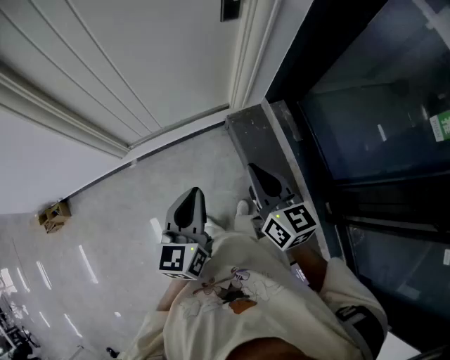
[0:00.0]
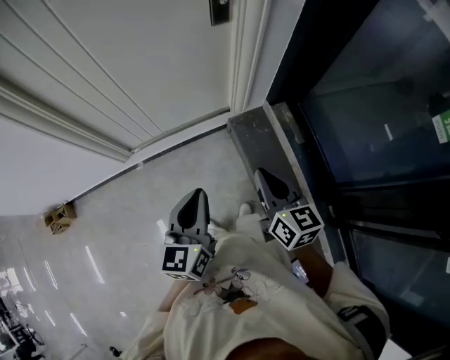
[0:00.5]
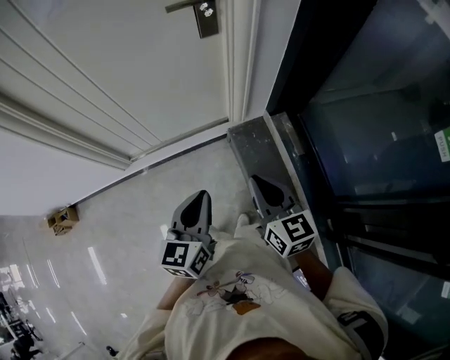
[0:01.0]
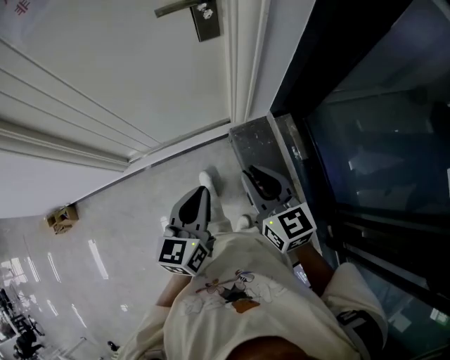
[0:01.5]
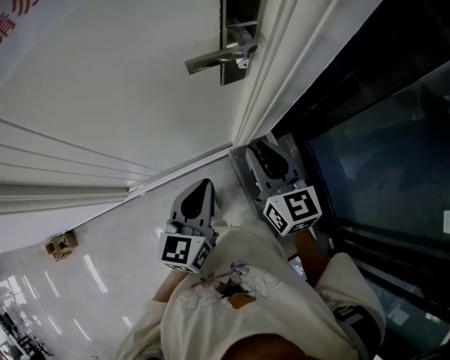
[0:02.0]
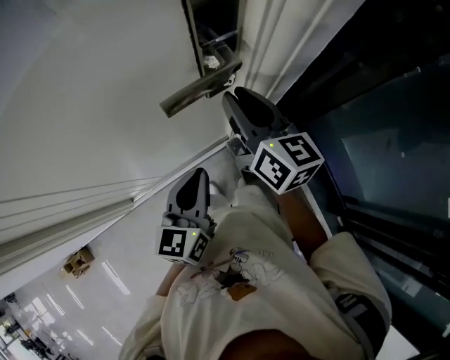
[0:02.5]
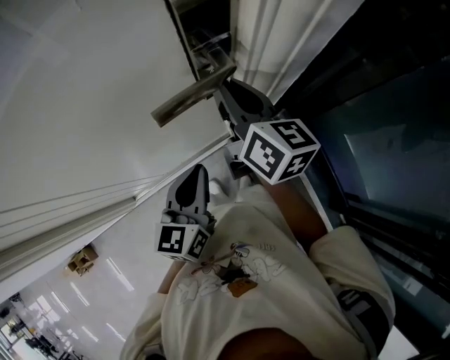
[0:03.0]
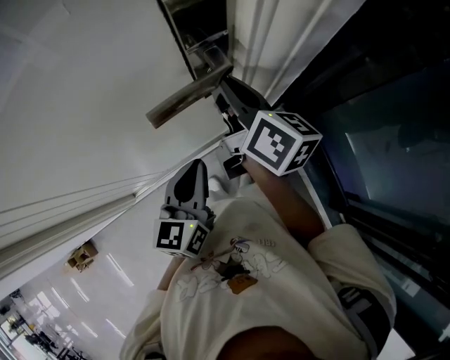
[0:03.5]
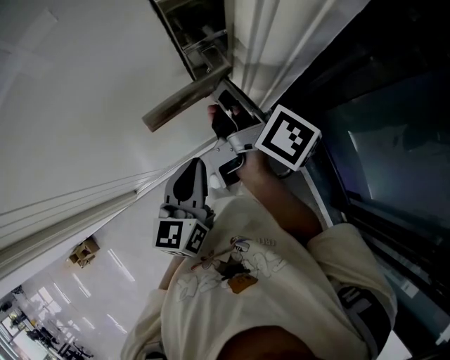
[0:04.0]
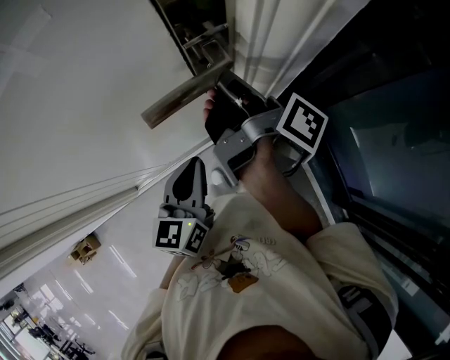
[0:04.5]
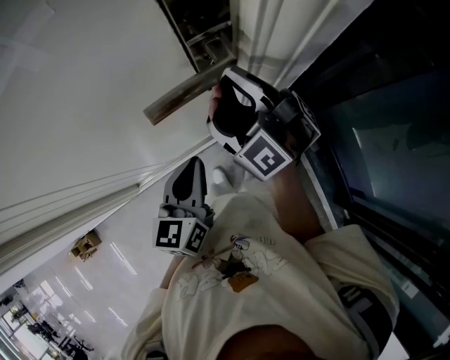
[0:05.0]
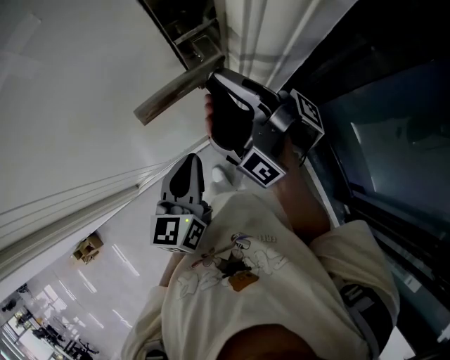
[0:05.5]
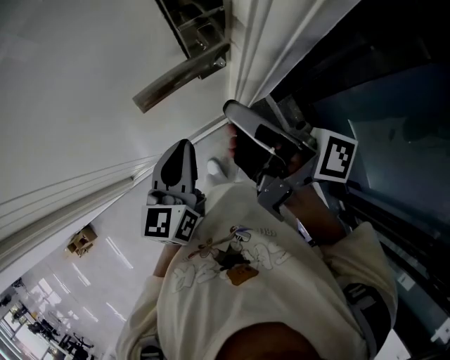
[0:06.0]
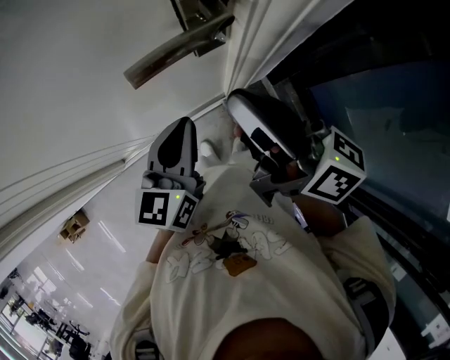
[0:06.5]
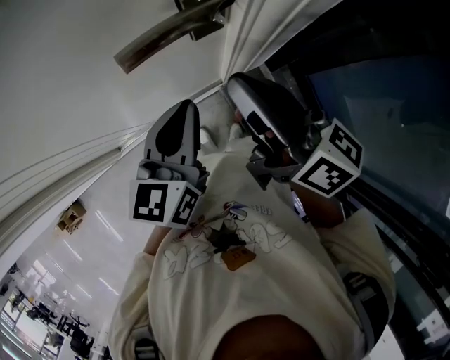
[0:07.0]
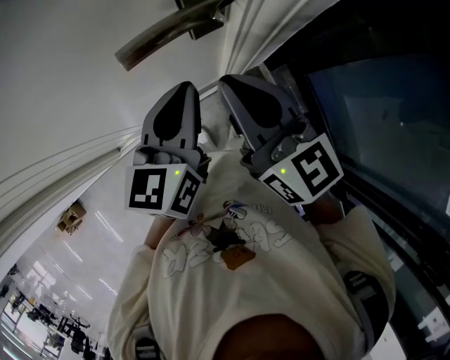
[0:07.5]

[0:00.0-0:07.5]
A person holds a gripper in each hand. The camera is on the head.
0:00.0 to 0:02.0: Both grippers travel together forward, approximately 35 cm. The right gripper opens.
0:02.0 to 0:04.0: The left gripper travels forward by roughly 10 cm. The right gripper heads forward, covering about 20 cm, and twists about 60 degrees clockwise, seen from behind.
0:04.0 to 0:05.5: The right gripper rolls clockwise, seen from behind, by approximately 60 degrees.
0:05.5 to 0:07.5: The right gripper is displaced backward by approximately 10 cm, and rotates around the line of its fingers by some 110 degrees, counterclockwise from behind. Meanwhile the left gripper travels upward by about 5 cm.

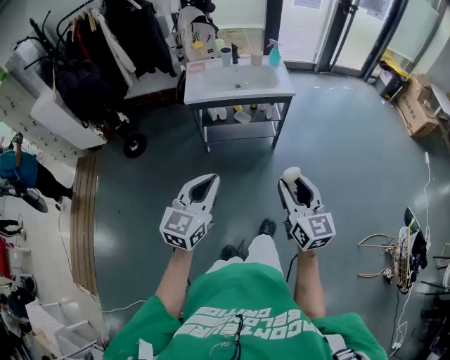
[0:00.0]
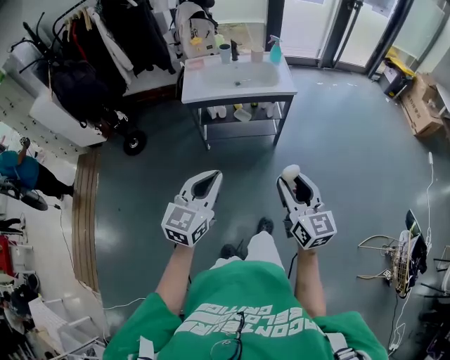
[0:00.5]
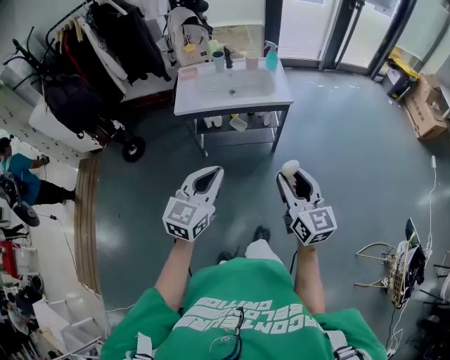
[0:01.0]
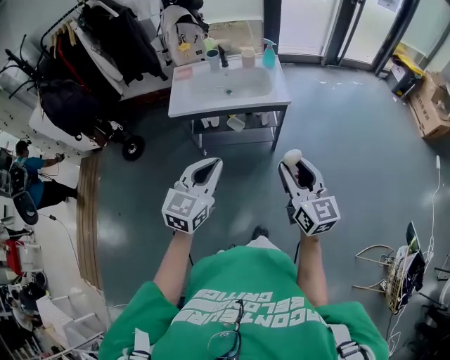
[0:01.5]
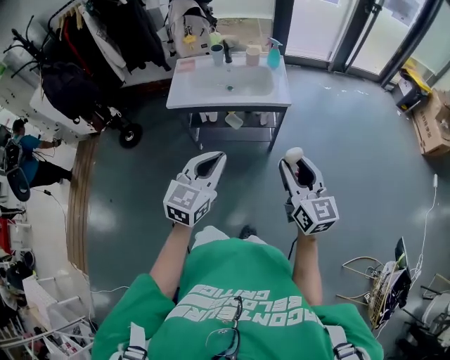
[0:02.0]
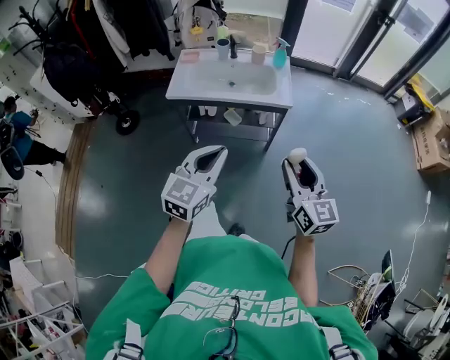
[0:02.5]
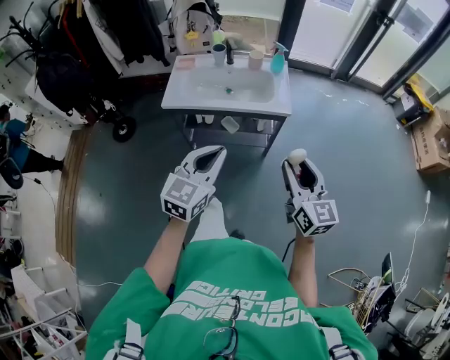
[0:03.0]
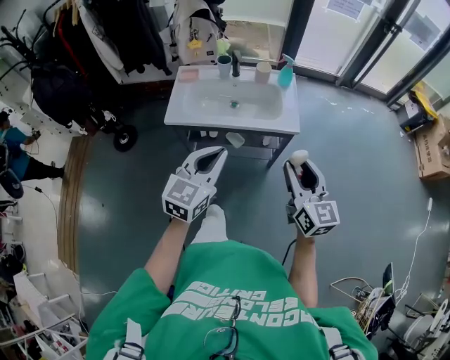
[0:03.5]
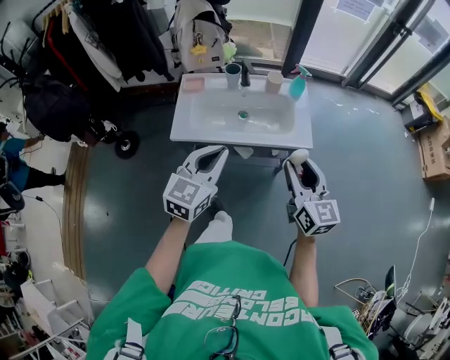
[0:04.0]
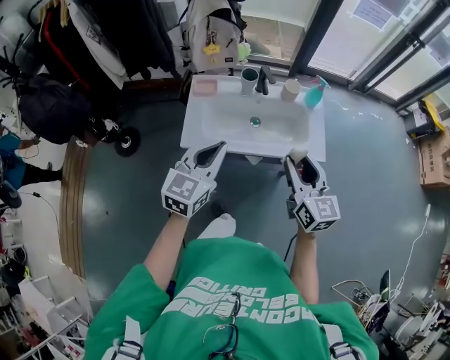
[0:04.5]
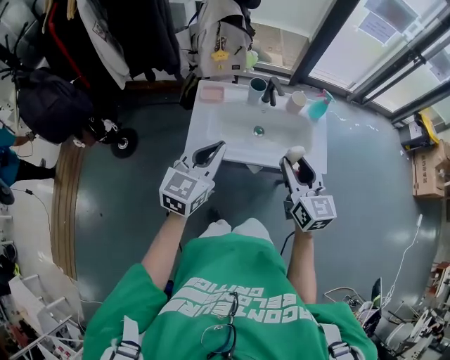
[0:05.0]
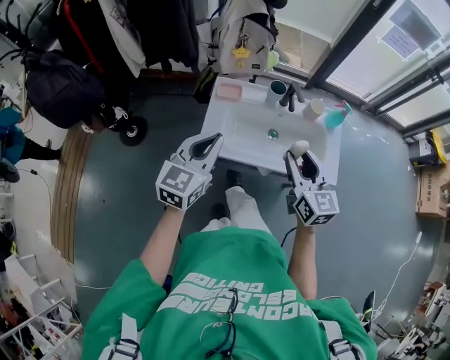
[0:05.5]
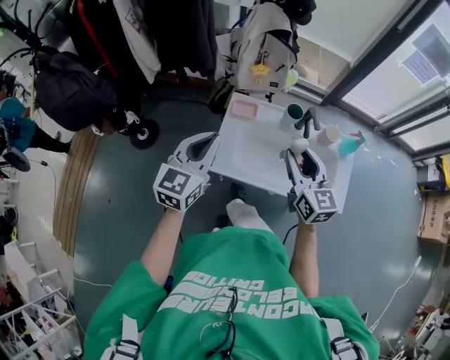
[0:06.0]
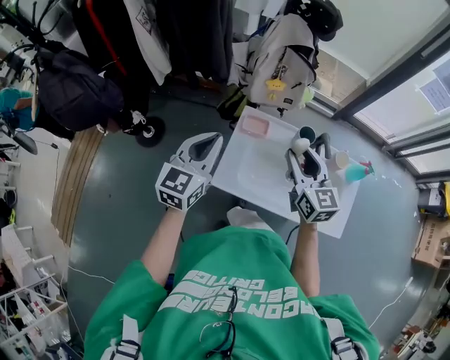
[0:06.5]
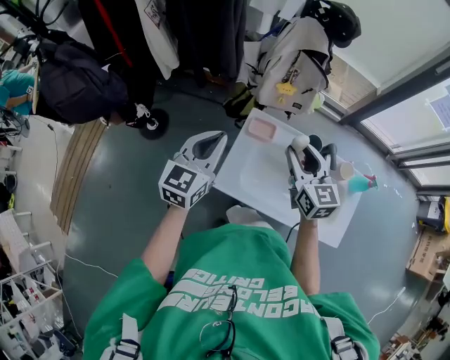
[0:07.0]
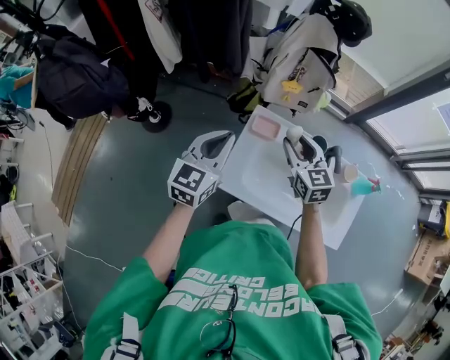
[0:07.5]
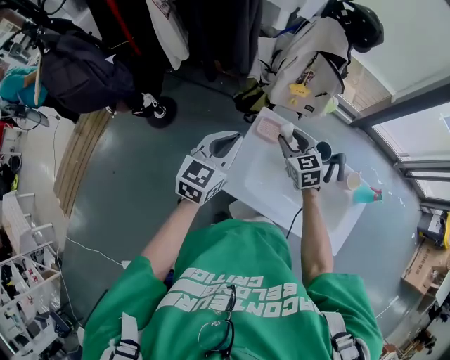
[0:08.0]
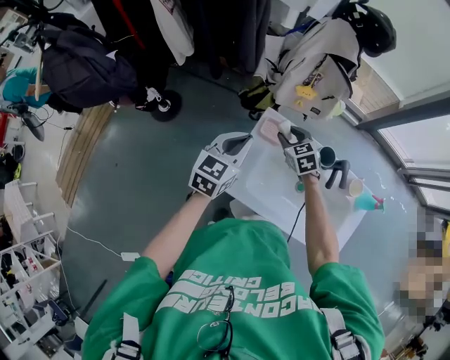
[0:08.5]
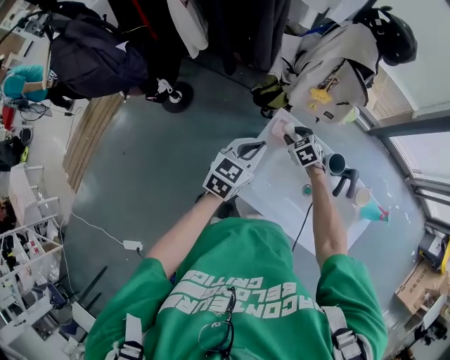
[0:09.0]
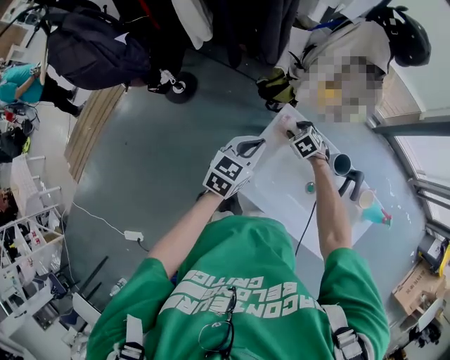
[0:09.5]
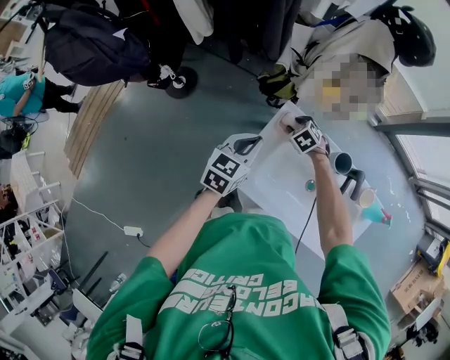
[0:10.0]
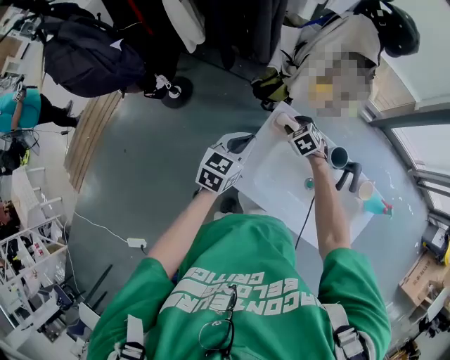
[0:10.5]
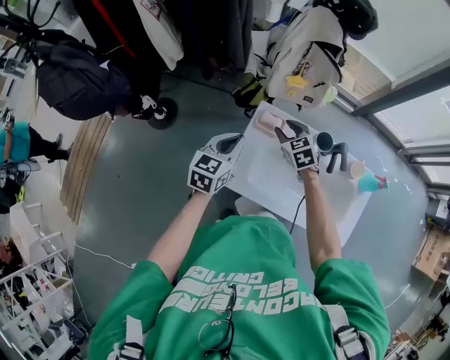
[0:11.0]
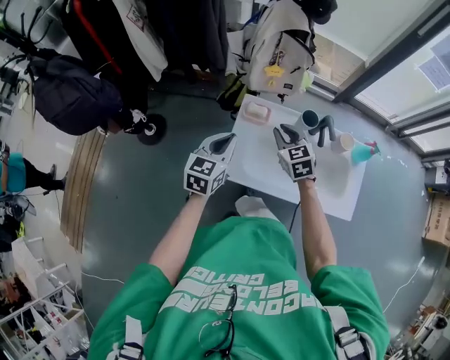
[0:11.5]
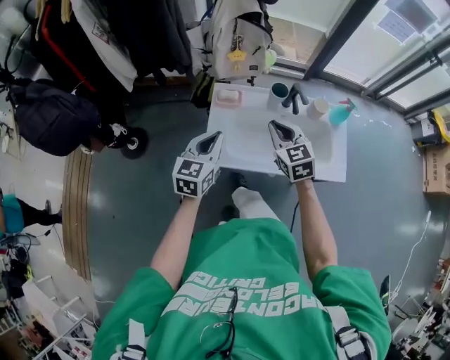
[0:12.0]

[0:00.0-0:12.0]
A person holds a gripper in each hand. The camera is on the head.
0:00.0 to 0:02.0: Both grippers travel together forward and to the right, approximately 25 cm.
0:02.0 to 0:04.0: The left gripper heads forward and to the left, covering about 30 cm. Meanwhile the right gripper heads forward, covering about 25 cm.
0:04.0 to 0:06.0: The left gripper heads to the left and forward, covering roughly 30 cm; the right gripper moves forward and to the left, about 35 cm.
0:06.0 to 0:08.0: The right gripper shifts roughly 30 cm forward and downward, and rotates approximately 30 degrees. Meanwhile the left gripper shifts approximately 15 cm forward and downward.
0:08.0 to 0:10.0: The left gripper shifts roughly 10 cm downward, while the right gripper shifts some 20 cm downward, and points its fingers some 30 degrees further downward.
0:10.0 to 0:12.0: The right gripper moves upward and backward, approximately 35 cm, tips its fingers upward by some 40 degrees, and closes. The left gripper goes approximately 15 cm backward and upward.

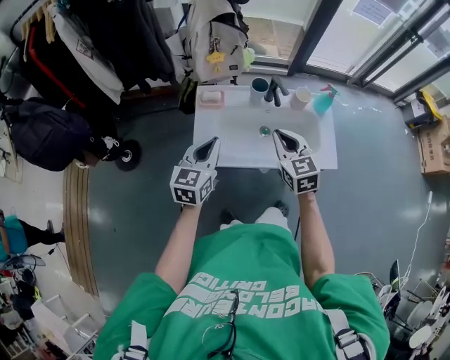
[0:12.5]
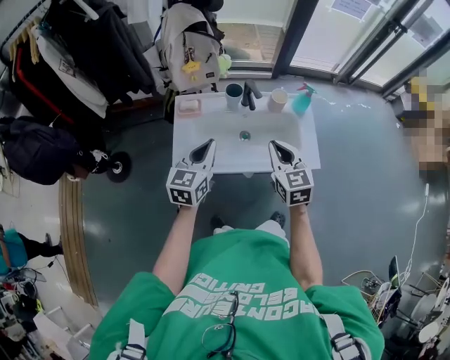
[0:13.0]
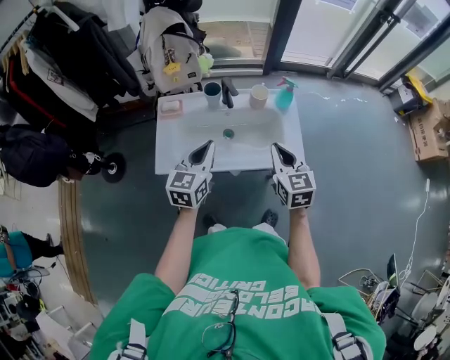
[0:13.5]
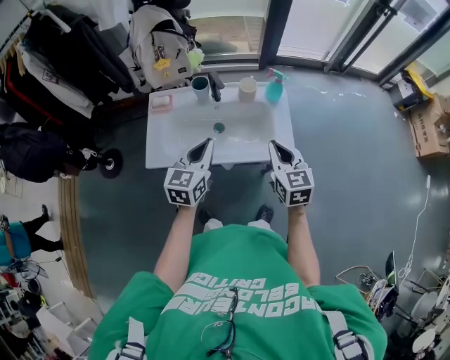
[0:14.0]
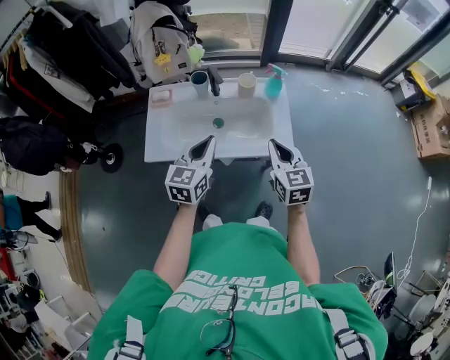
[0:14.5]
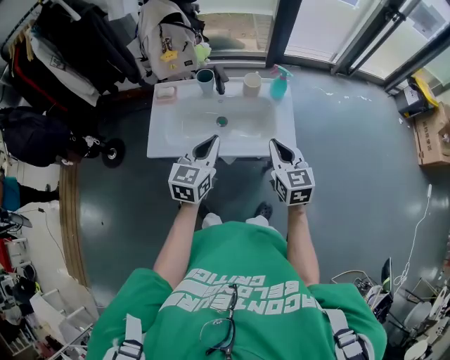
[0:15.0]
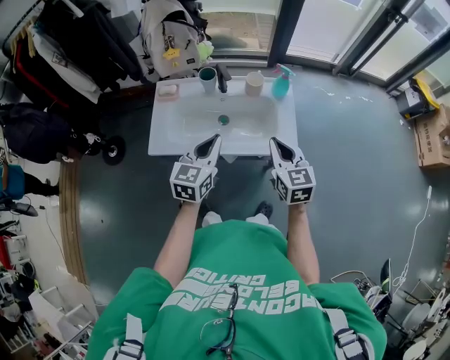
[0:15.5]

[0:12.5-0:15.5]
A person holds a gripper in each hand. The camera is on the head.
0:12.5 to 0:14.0: The two grippers go about 25 cm to the right.
0:14.0 to 0:15.5: There are only small adjustments of the grippers.

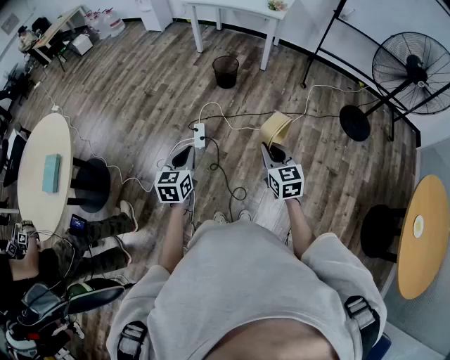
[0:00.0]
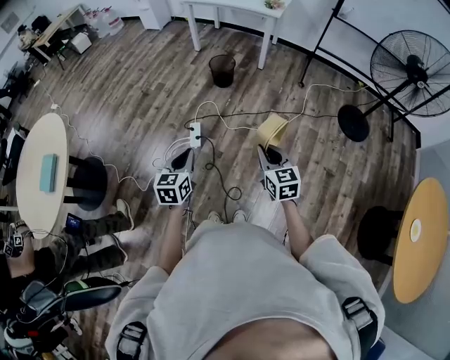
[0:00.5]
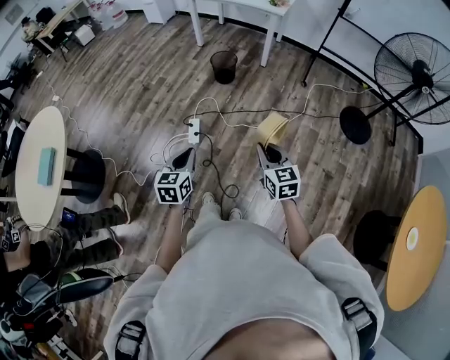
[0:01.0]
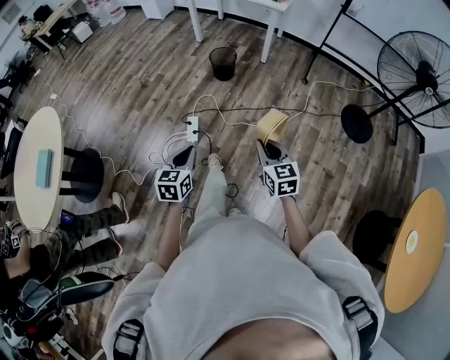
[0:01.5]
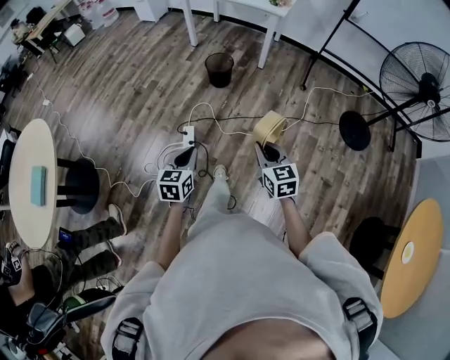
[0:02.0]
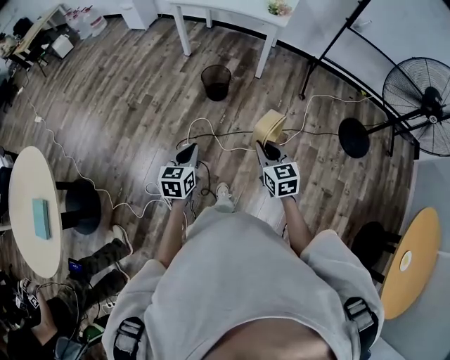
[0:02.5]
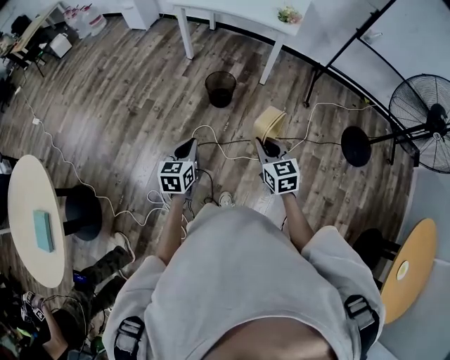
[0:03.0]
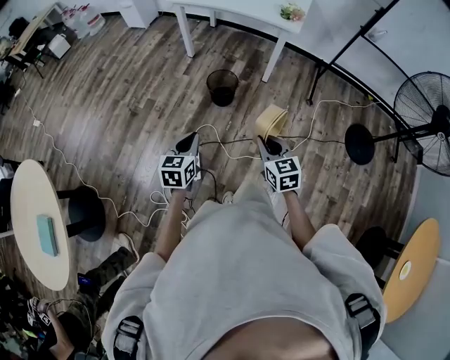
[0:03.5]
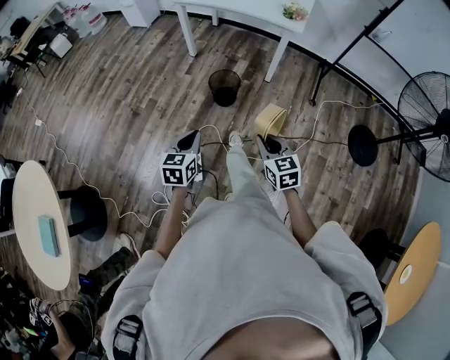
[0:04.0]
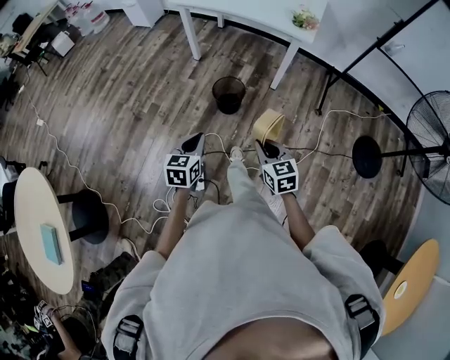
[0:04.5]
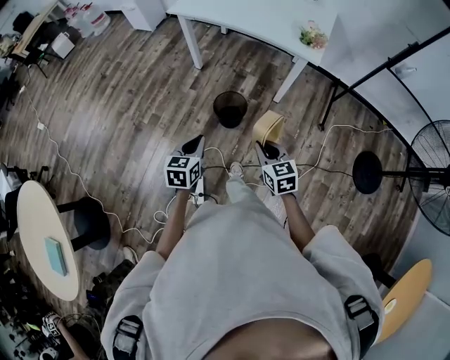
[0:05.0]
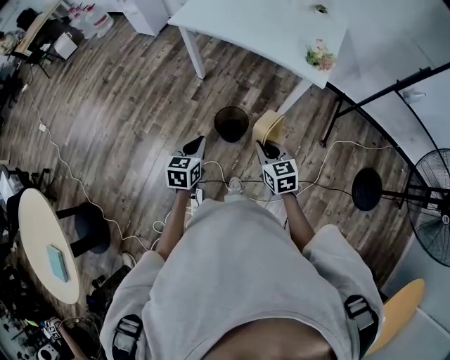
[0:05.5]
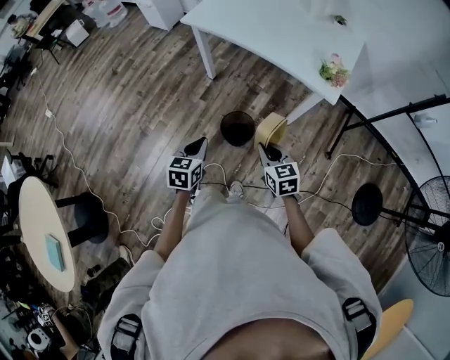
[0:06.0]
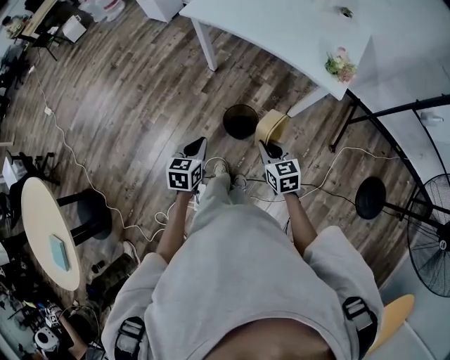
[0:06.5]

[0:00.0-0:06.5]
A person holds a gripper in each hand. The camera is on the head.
0:00.0 to 0:02.0: The left gripper moves forward, to the right and downward, about 15 cm, while the right gripper moves forward, some 15 cm.
0:02.0 to 0:04.5: The two grippers go roughly 40 cm forward.
0:04.5 to 0:06.5: Both grippers travel together forward, roughly 30 cm.
